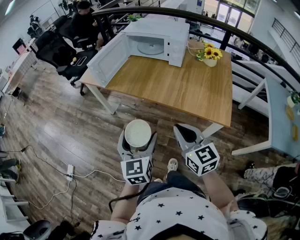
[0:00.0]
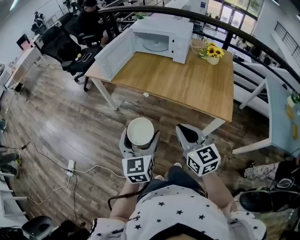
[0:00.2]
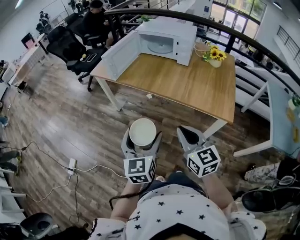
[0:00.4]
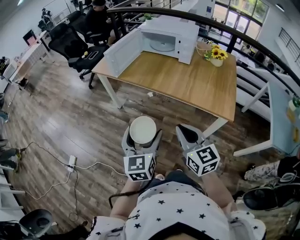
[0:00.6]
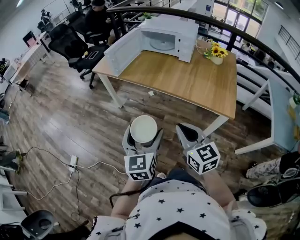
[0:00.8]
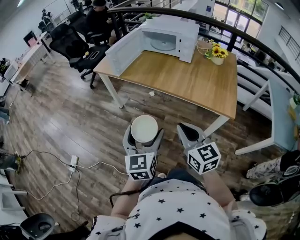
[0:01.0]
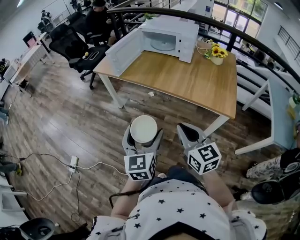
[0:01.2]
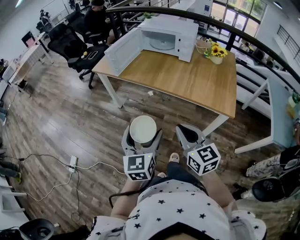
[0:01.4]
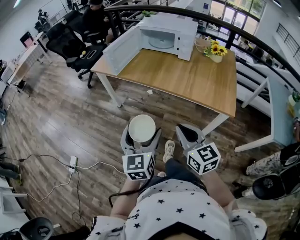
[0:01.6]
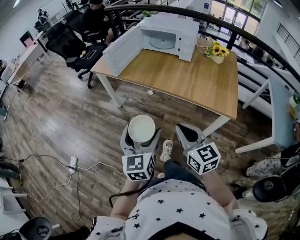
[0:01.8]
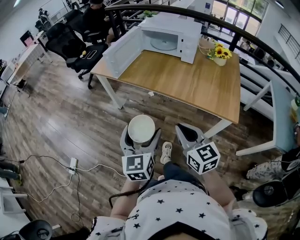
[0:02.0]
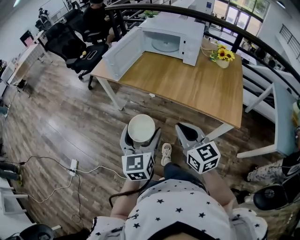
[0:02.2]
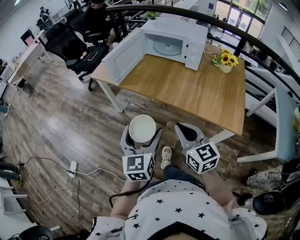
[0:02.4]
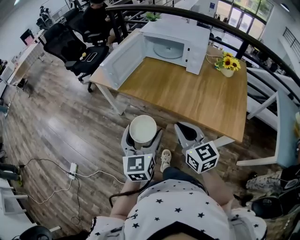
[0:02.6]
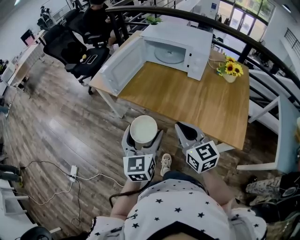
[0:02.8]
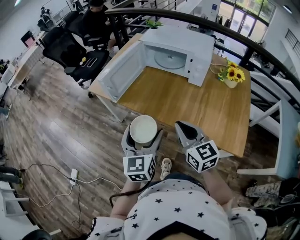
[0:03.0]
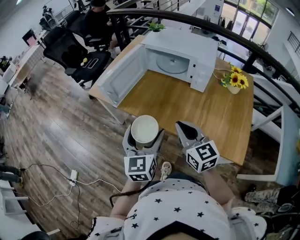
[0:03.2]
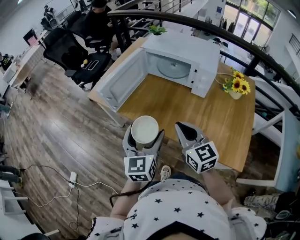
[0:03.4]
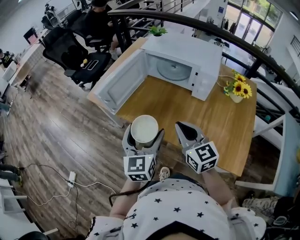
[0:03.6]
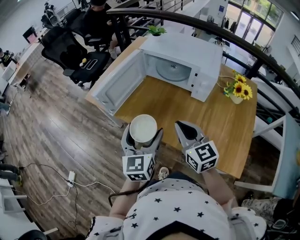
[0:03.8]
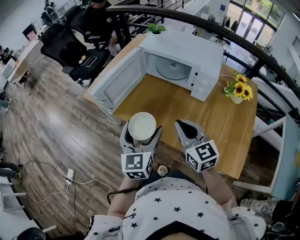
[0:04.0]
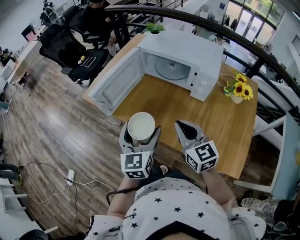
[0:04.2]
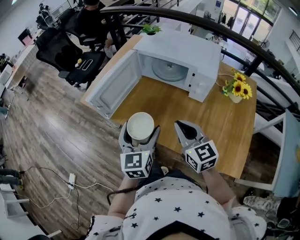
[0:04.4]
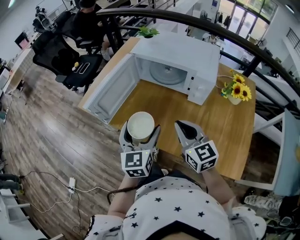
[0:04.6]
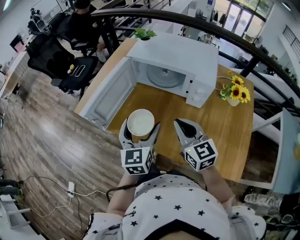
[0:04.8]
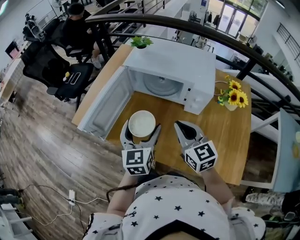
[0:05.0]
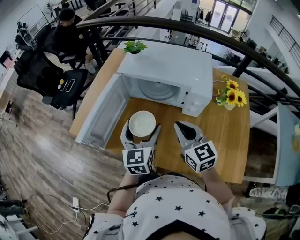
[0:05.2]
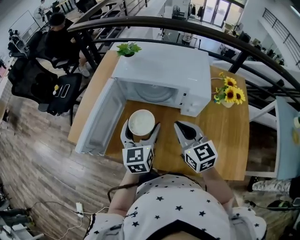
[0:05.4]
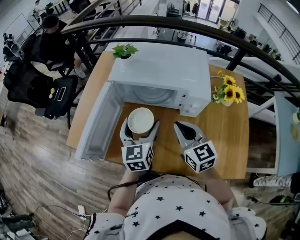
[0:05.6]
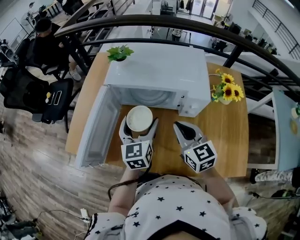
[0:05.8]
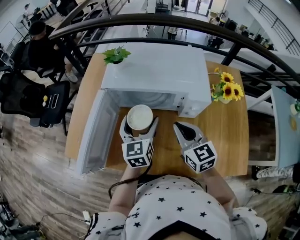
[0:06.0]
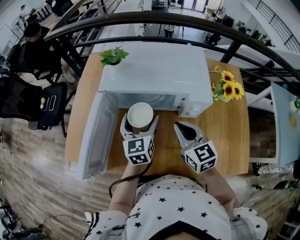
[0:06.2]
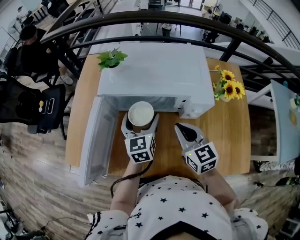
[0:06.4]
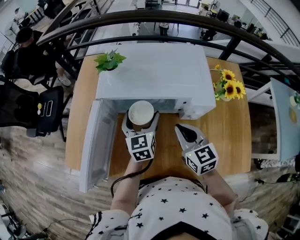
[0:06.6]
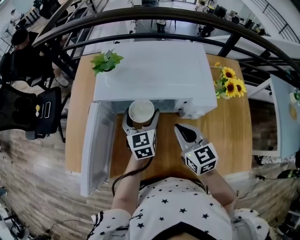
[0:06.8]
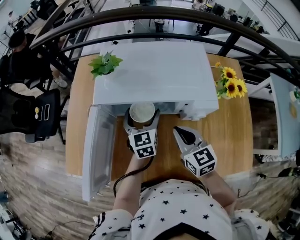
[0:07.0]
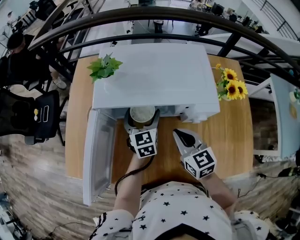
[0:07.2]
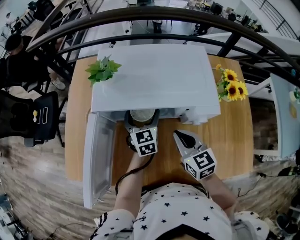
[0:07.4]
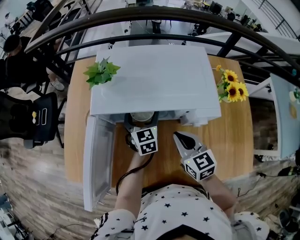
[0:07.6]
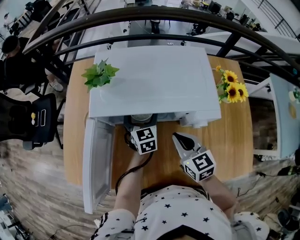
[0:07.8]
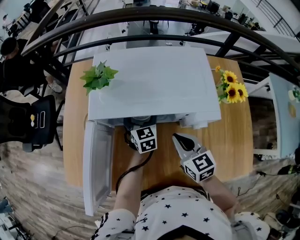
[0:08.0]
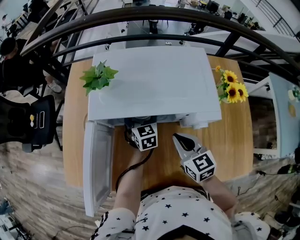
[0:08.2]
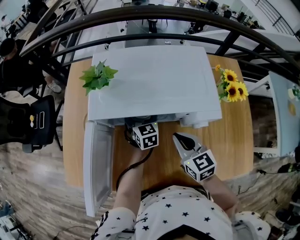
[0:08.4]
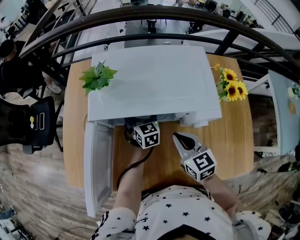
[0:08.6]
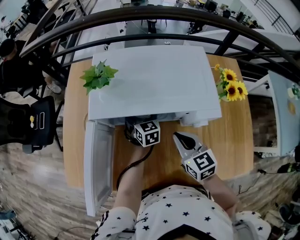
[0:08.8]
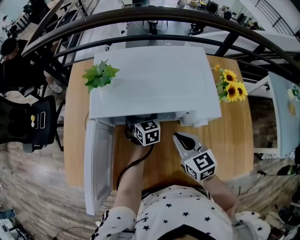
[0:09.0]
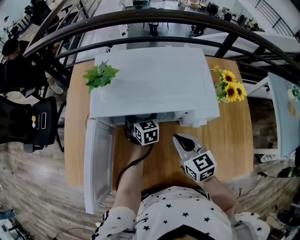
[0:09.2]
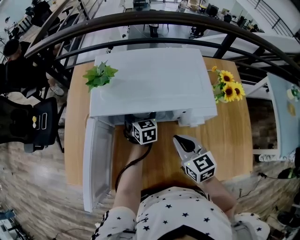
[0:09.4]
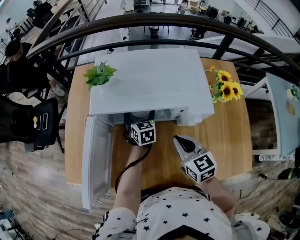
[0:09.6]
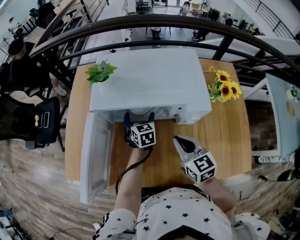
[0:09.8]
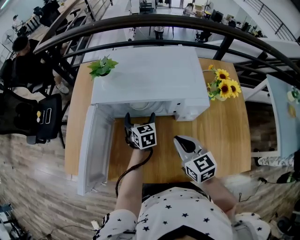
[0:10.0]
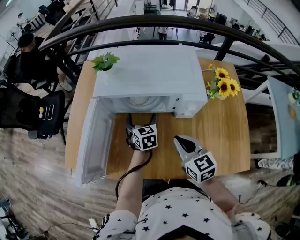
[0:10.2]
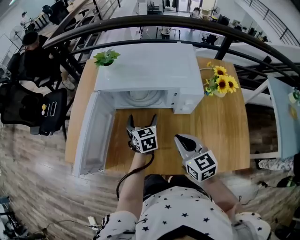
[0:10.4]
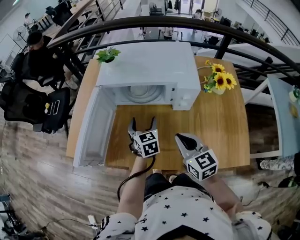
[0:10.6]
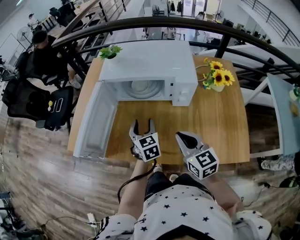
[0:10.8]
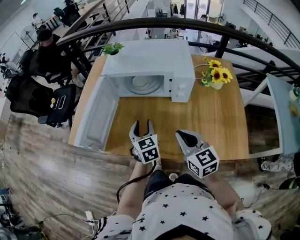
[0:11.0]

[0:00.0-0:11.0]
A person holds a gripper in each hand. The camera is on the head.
0:00.0 to 0:01.6: The two grippers go approximately 10 cm backward and to the left.
0:01.6 to 0:03.2: The grippers both shift forward by some 30 cm.
0:03.2 to 0:04.8: The right gripper travels forward and to the right by about 15 cm. Meanwhile the left gripper moves forward, some 15 cm.
0:04.8 to 0:06.2: The right gripper goes approximately 15 cm forward; the left gripper heads forward, covering roughly 20 cm.
0:06.2 to 0:07.8: The left gripper heads forward and downward, covering roughly 15 cm; the right gripper moves downward, roughly 5 cm.
0:07.8 to 0:09.4: The grippers make only small movements.
0:09.4 to 0:11.0: The two grippers go some 25 cm backward. The left gripper closes.

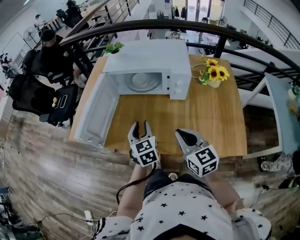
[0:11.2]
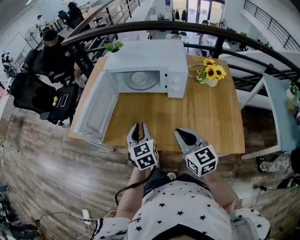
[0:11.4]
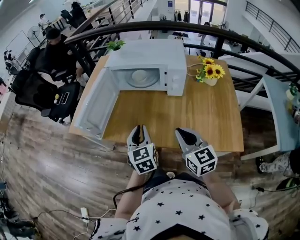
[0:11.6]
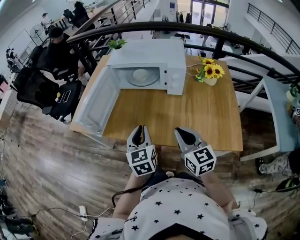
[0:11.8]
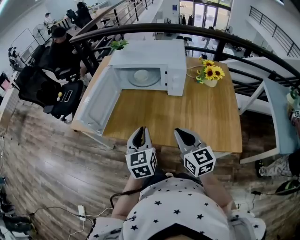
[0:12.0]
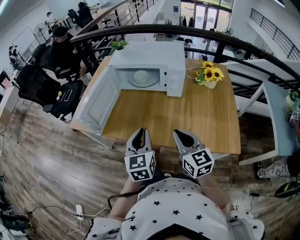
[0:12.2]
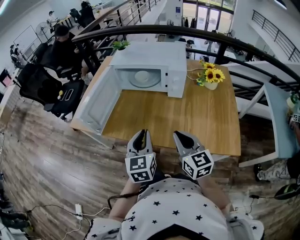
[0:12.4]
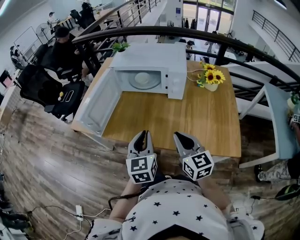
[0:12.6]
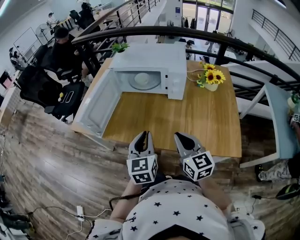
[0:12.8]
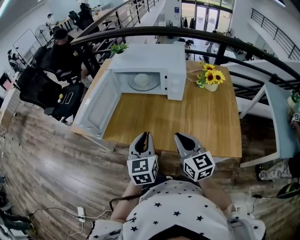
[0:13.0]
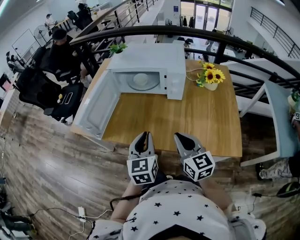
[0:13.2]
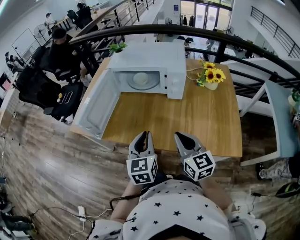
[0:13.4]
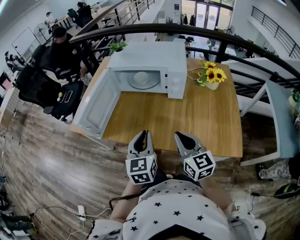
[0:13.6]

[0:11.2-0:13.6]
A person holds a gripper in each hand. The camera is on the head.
0:11.2 to 0:12.4: The left gripper is displaced backward and upward by some 15 cm. Meanwhile the right gripper heads backward, covering approximately 5 cm.
0:12.4 to 0:13.6: The grippers stay close to where they were, moving slightly.

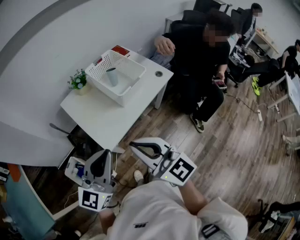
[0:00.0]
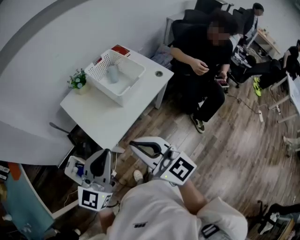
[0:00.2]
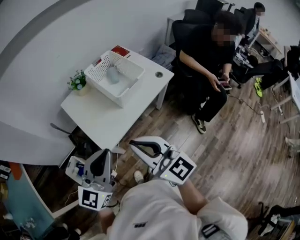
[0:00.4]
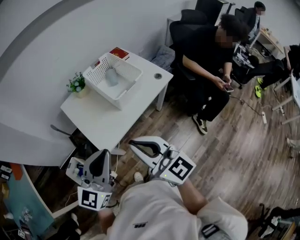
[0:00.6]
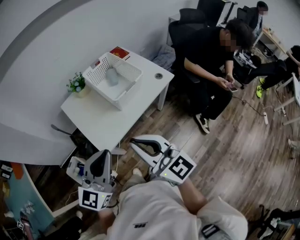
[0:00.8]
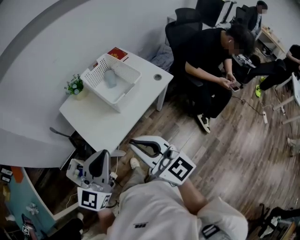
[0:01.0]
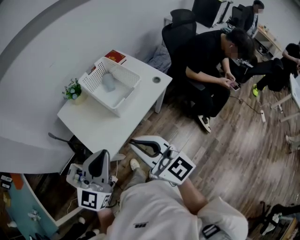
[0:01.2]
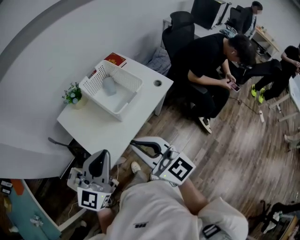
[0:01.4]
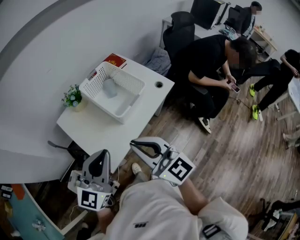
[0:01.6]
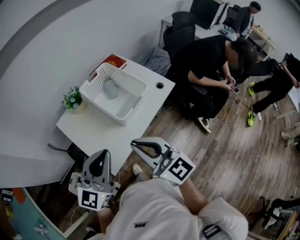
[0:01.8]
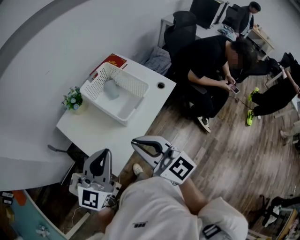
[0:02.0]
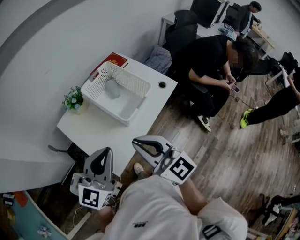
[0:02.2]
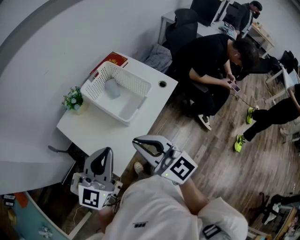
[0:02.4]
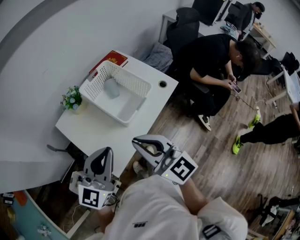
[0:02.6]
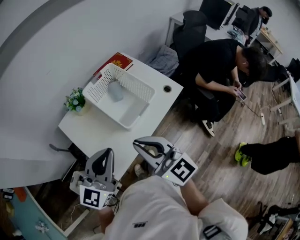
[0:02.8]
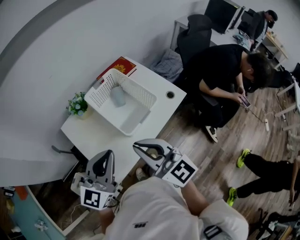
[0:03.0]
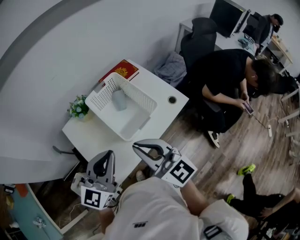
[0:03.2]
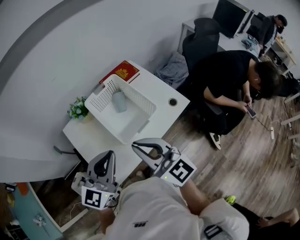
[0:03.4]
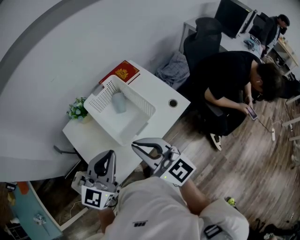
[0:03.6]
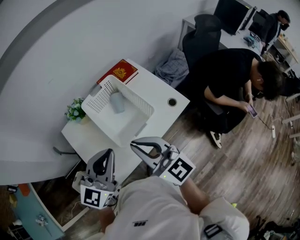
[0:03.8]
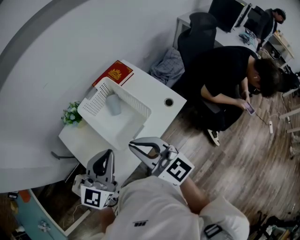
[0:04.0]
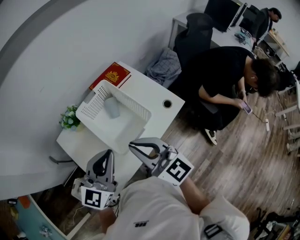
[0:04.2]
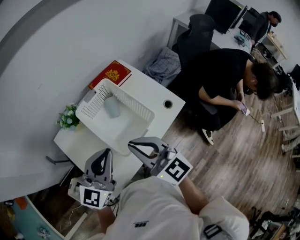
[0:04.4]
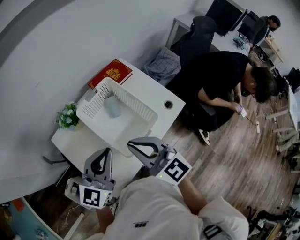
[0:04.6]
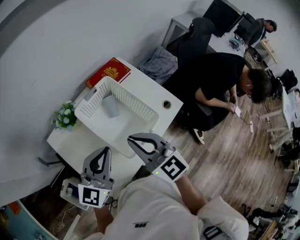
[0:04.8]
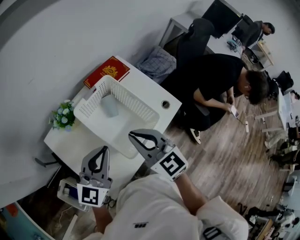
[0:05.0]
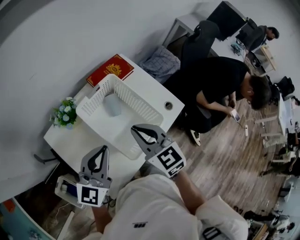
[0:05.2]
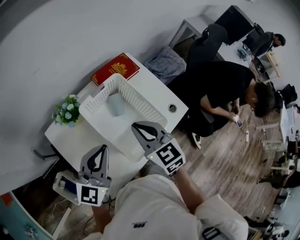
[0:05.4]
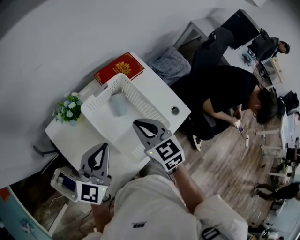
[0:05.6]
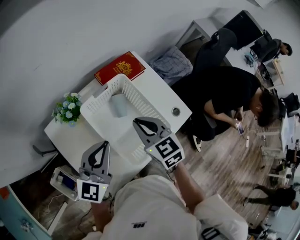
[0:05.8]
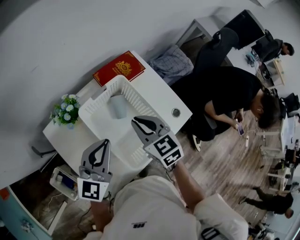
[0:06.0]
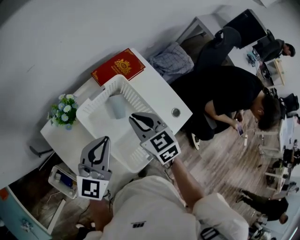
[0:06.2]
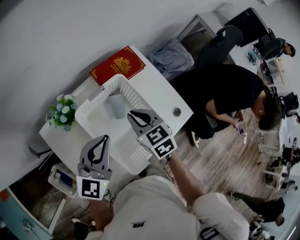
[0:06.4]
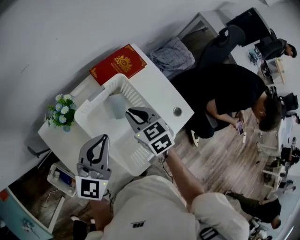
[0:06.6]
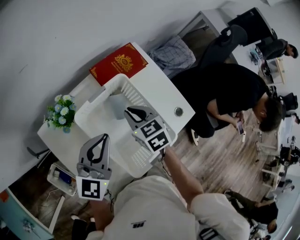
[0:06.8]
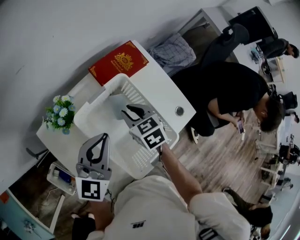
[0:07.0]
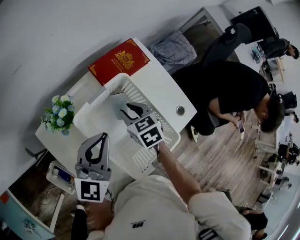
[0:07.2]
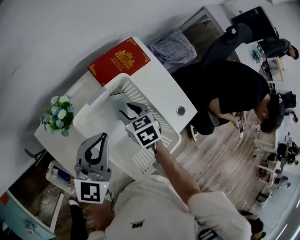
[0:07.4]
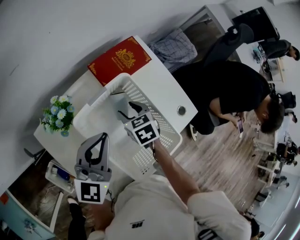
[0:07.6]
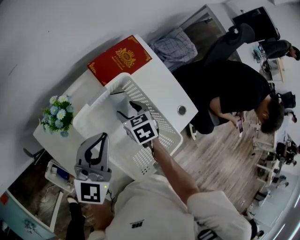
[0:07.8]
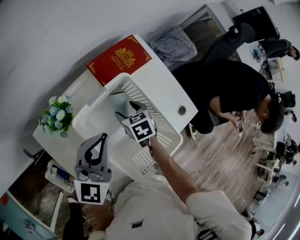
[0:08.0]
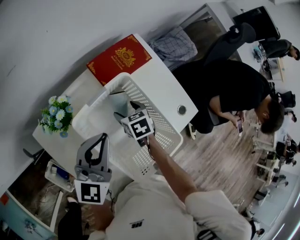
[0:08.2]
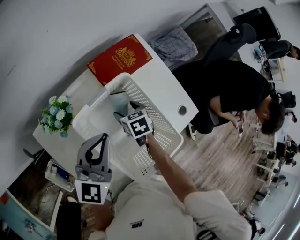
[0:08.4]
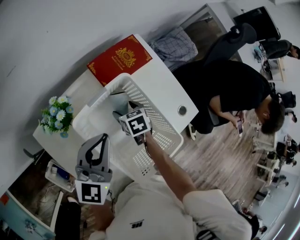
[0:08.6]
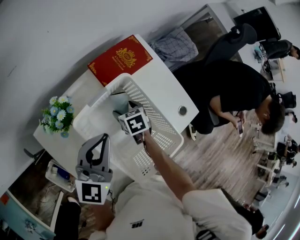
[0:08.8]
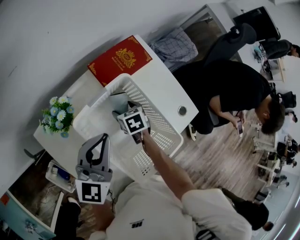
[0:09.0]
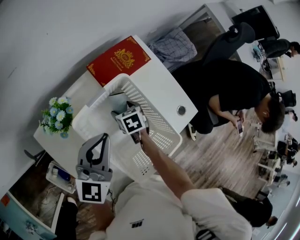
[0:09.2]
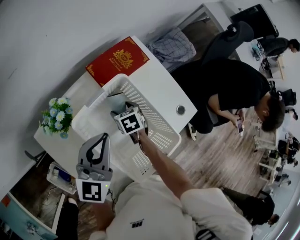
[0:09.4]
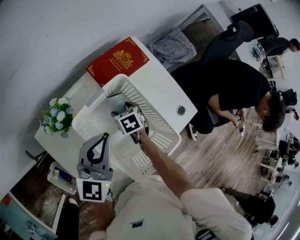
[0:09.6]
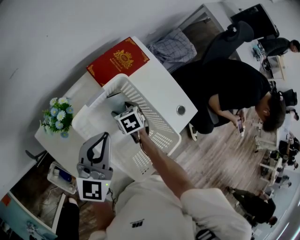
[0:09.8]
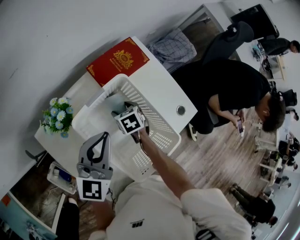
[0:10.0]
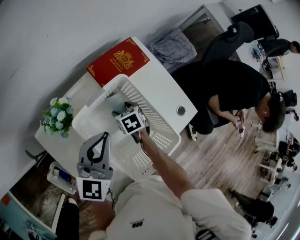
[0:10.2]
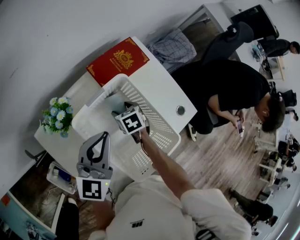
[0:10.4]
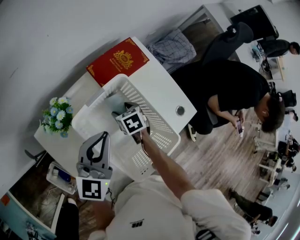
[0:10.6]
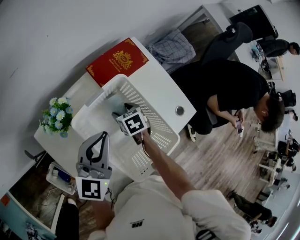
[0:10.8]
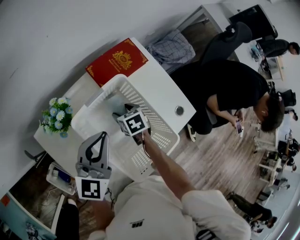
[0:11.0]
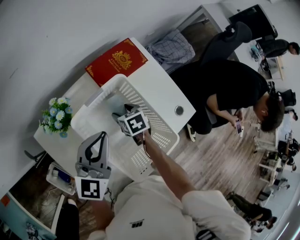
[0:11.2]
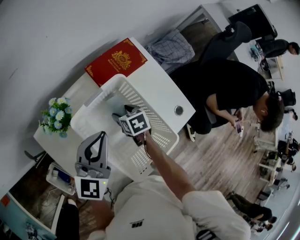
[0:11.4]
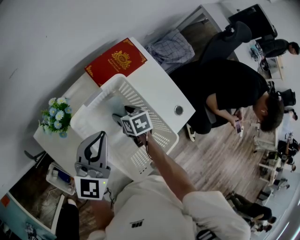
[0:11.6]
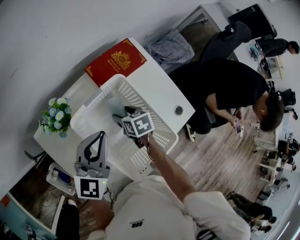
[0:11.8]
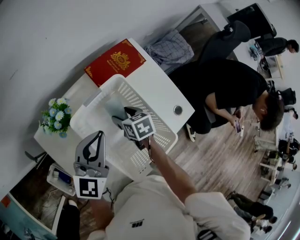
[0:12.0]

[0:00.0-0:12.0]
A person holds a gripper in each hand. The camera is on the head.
0:00.0 to 0:01.6: The two grippers go roughly 15 cm forward.
0:01.6 to 0:03.0: The two grippers go some 10 cm forward.
0:03.0 to 0:04.4: Both grippers travel together forward, about 10 cm.
0:04.4 to 0:06.0: The right gripper travels forward and downward by about 20 cm, and angles its fingers downward, by some 30 degrees, while the left gripper is displaced forward, downward and to the left by roughly 15 cm.
0:06.0 to 0:07.6: The right gripper is displaced downward and forward by roughly 20 cm, turns by about 30 degrees, and opens its fingers. The left gripper moves forward, roughly 10 cm.
0:07.6 to 0:09.0: The right gripper shifts about 10 cm downward, and opens its fingers.
0:09.0 to 0:10.4: The two grippers keep their place.
0:10.4 to 0:12.0: The right gripper is displaced upward by roughly 5 cm.
